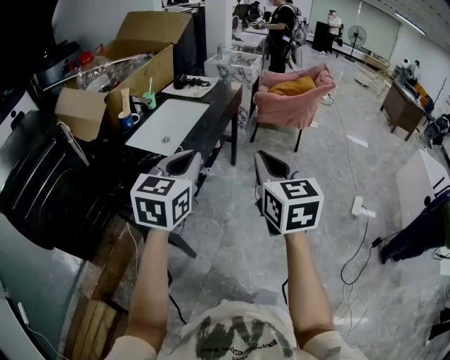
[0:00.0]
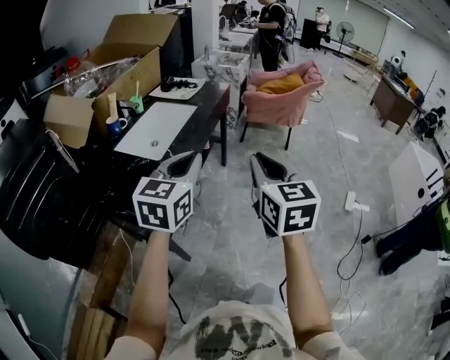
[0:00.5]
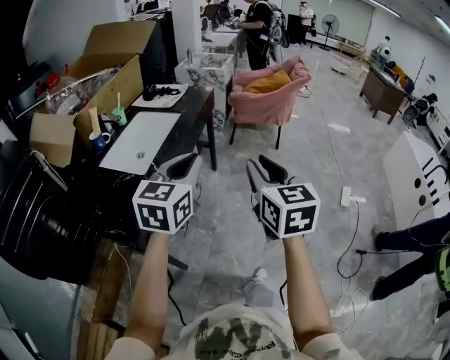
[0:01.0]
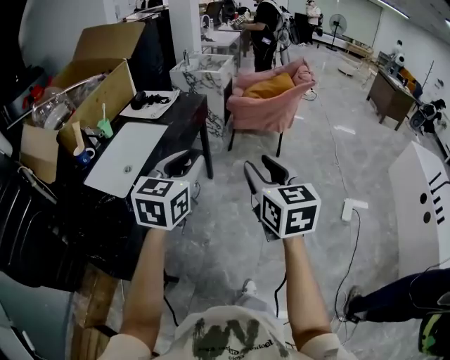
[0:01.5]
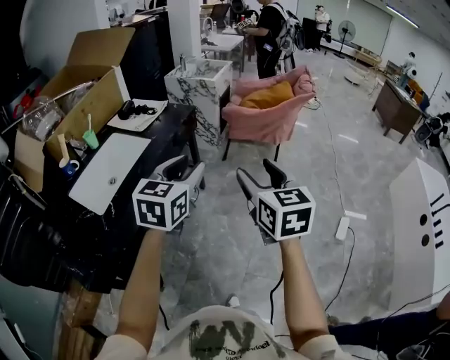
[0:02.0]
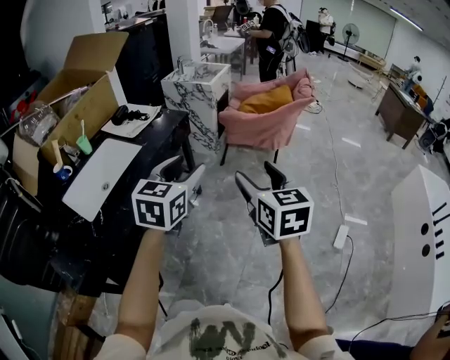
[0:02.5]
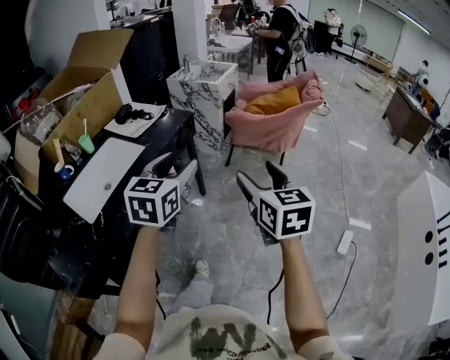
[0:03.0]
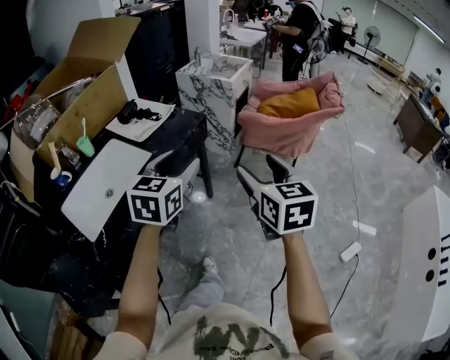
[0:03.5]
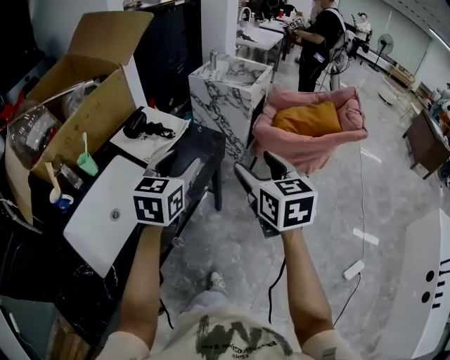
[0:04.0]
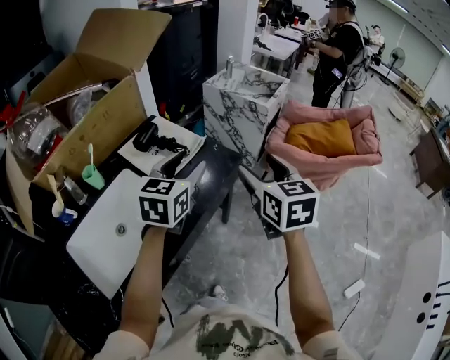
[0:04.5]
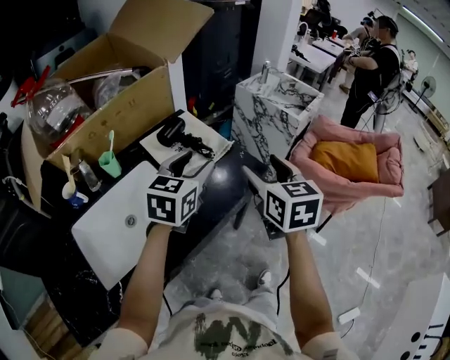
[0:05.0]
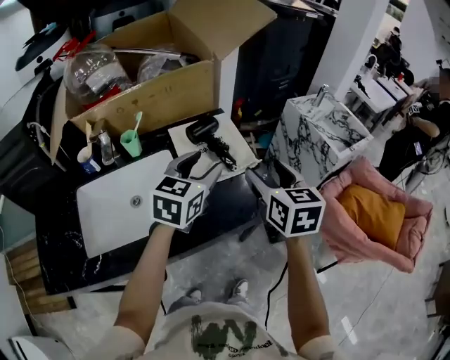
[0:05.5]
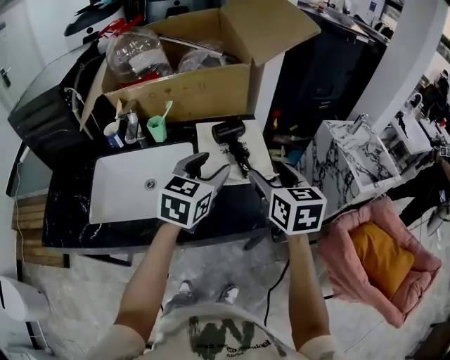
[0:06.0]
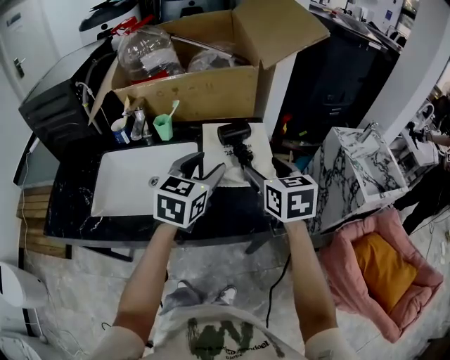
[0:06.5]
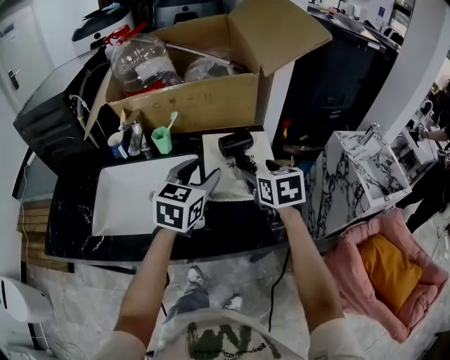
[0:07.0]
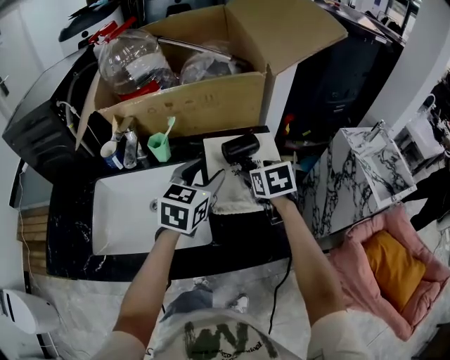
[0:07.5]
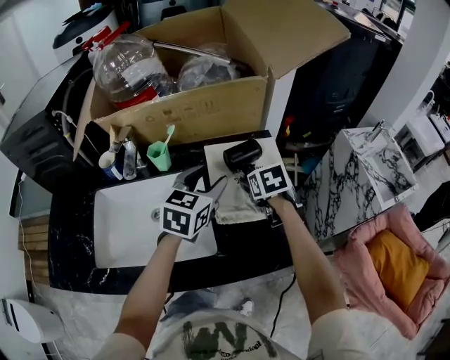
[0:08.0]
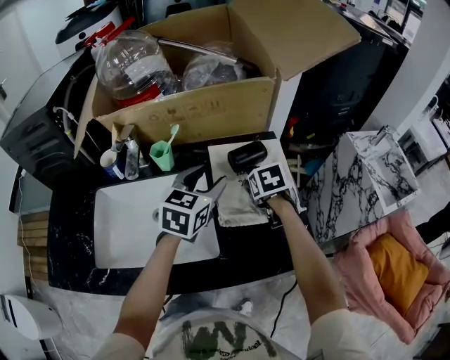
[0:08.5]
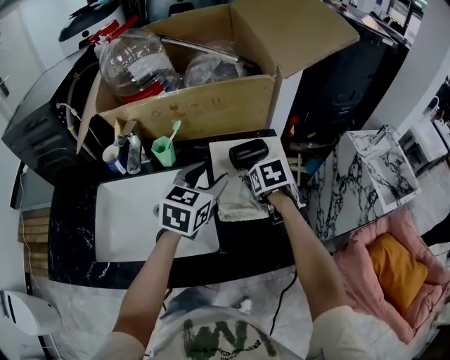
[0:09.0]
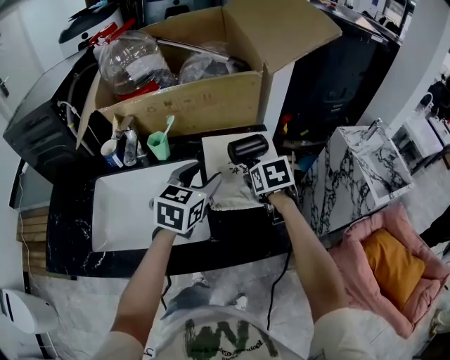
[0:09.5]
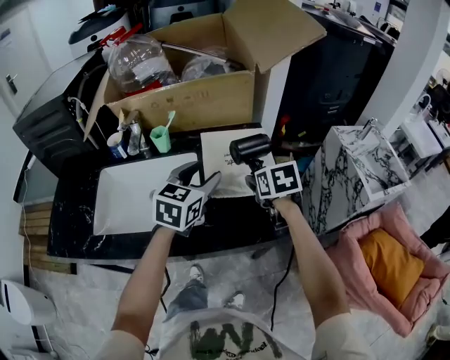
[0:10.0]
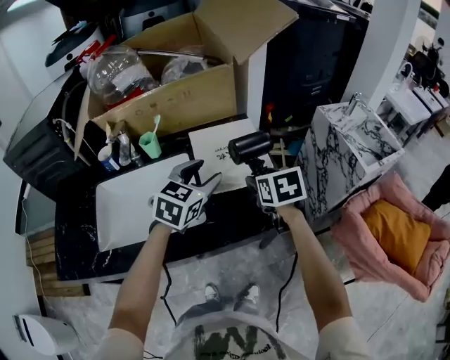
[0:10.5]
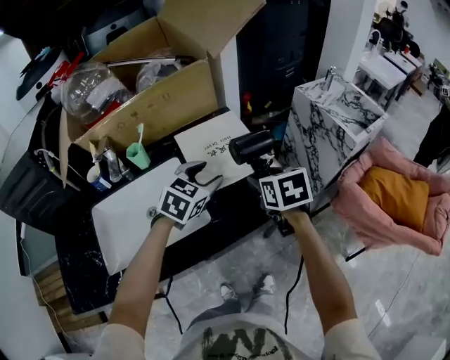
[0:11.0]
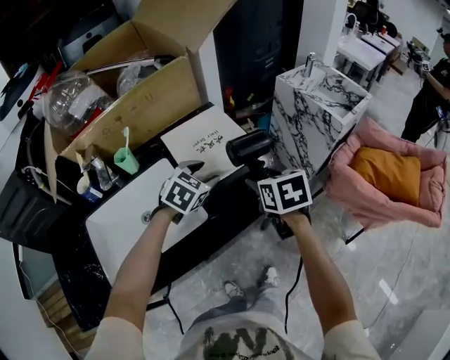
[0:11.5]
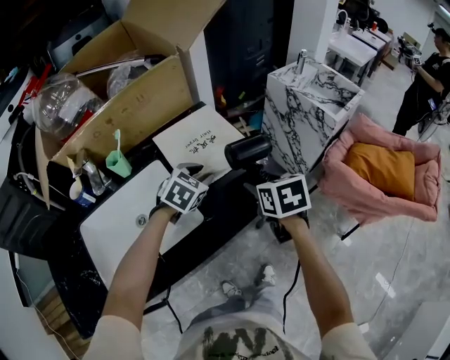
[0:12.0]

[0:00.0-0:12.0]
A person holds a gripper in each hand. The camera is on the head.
0:00.0 to 0:02.0: The two grippers go about 35 cm forward and to the right. The left gripper opens up. The right gripper opens its fingers.
0:02.0 to 0:04.0: Both grippers move forward, approximately 30 cm.
0:04.0 to 0:06.0: The right gripper changes place by some 30 cm, and changes its angle by some 50 degrees. Meanwhile the left gripper ends up roughly 20 cm from where it was, and changes its angle by some 40 degrees.
0:06.0 to 0:08.0: The right gripper is displaced forward and downward by about 25 cm, and angles its fingers downward, by some 30 degrees. Meanwhile the left gripper goes about 15 cm forward, downward and to the left.
0:08.0 to 0:10.0: The left gripper goes about 10 cm backward. The right gripper is displaced backward and upward by about 10 cm.
0:10.0 to 0:12.0: The left gripper goes about 15 cm downward, swivels approximately 50 degrees, and closes, while the right gripper moves about 15 cm, and rotates some 30 degrees.

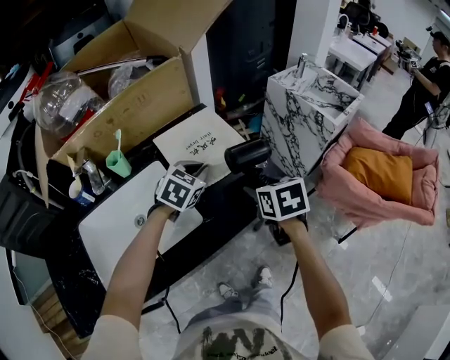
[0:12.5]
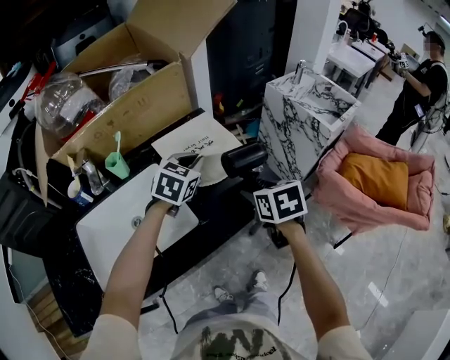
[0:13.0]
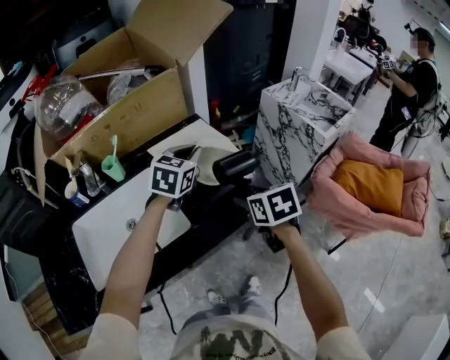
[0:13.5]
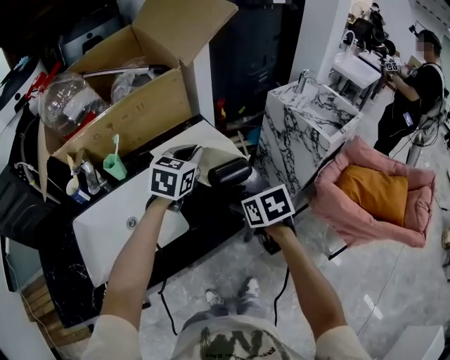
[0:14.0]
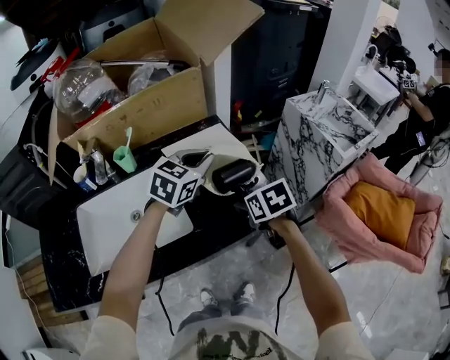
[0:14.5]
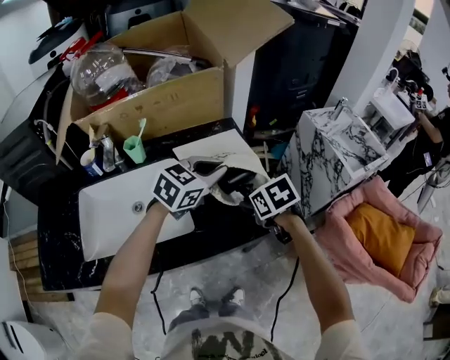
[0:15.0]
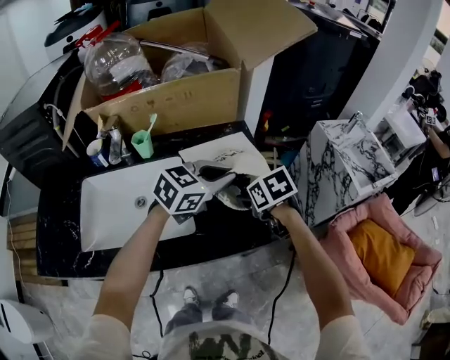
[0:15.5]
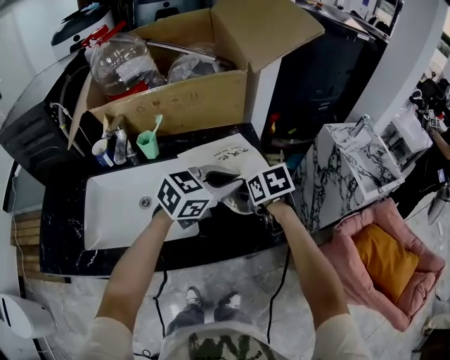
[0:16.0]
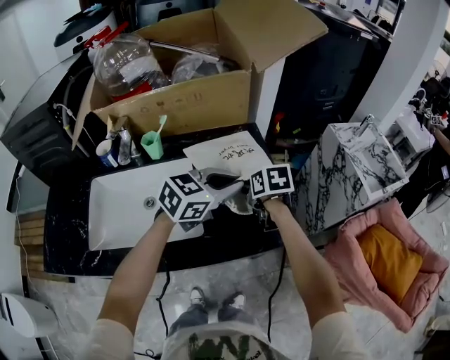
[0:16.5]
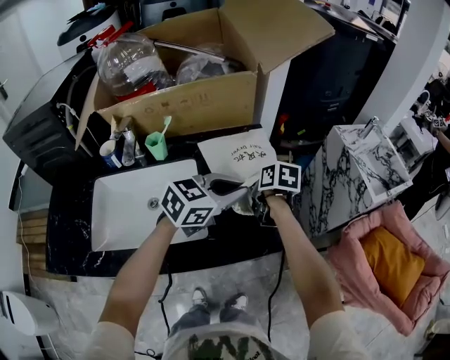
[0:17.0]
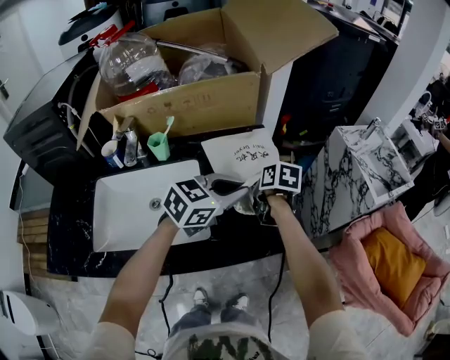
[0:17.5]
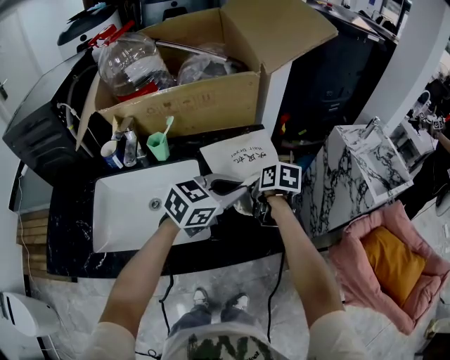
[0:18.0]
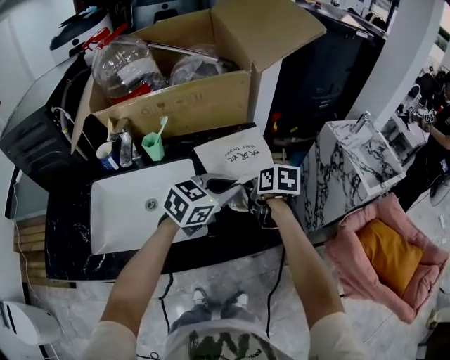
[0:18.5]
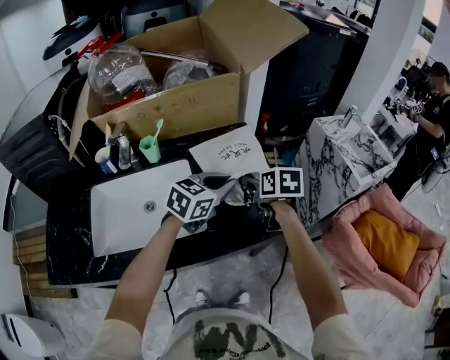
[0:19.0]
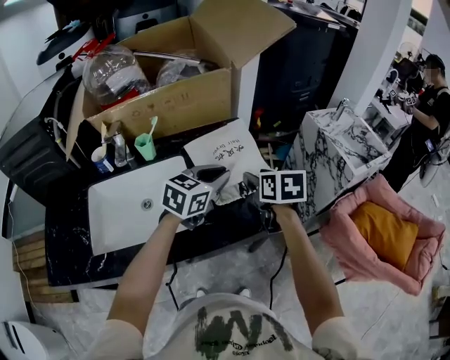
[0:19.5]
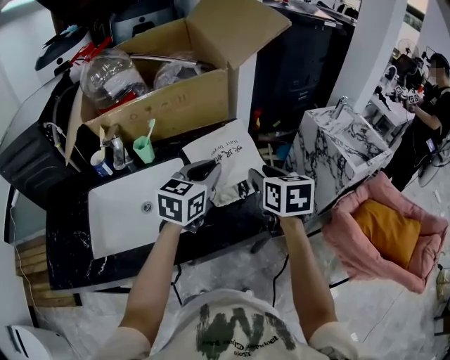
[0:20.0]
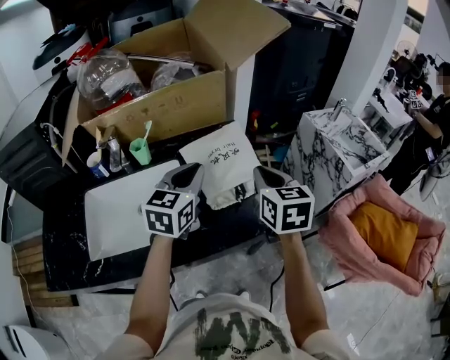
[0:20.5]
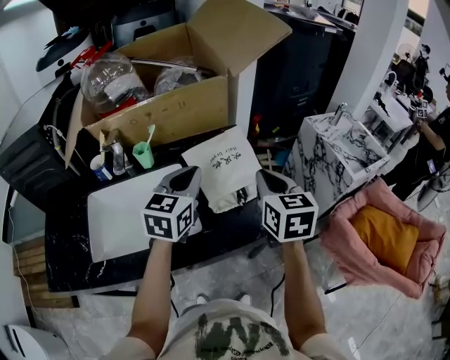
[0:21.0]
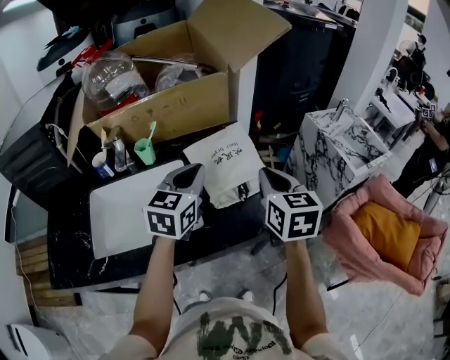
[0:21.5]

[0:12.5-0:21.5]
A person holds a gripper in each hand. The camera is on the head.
0:12.5 to 0:14.5: The left gripper moves upward, roughly 10 cm. Meanwhile the right gripper changes its angle by roughly 20 degrees.
0:14.5 to 0:17.0: The left gripper shifts by roughly 5 cm. Meanwhile the right gripper moves forward, about 15 cm.
0:17.0 to 0:19.5: The right gripper moves upward and backward, approximately 10 cm.
0:19.5 to 0:21.5: The right gripper goes approximately 10 cm upward, changes its angle by some 20 degrees, and closes its fingers. Meanwhile the left gripper heads upward and to the left, covering approximately 10 cm, and rotates about 20 degrees.

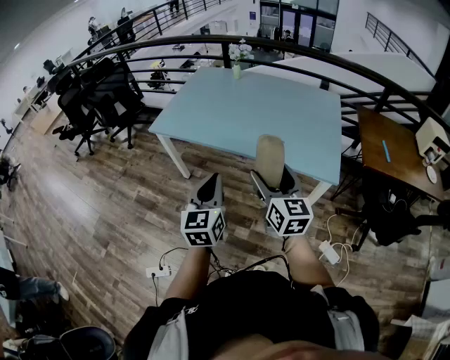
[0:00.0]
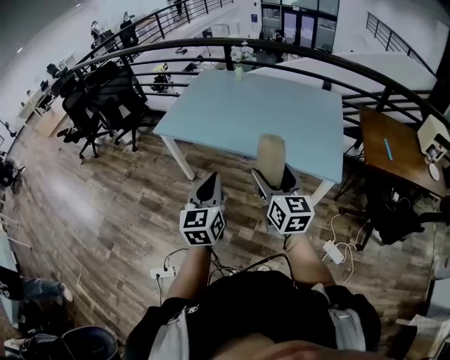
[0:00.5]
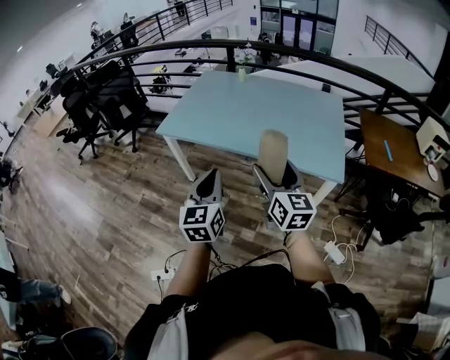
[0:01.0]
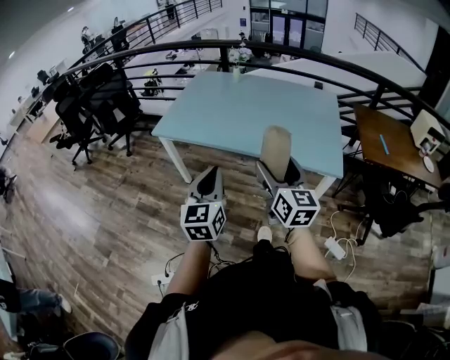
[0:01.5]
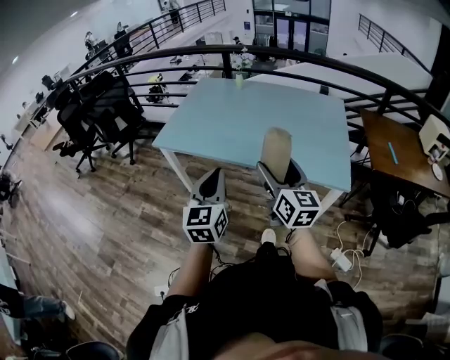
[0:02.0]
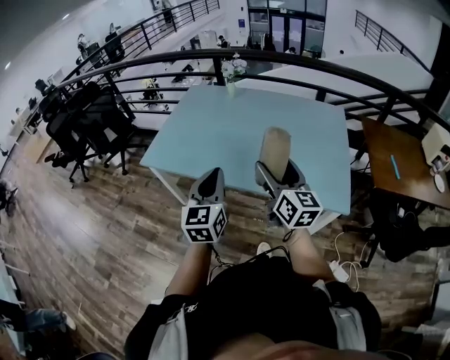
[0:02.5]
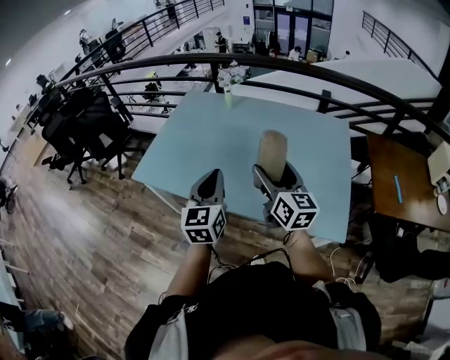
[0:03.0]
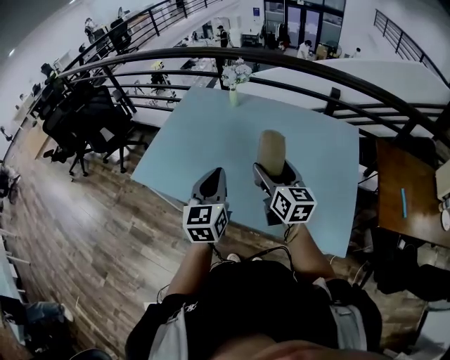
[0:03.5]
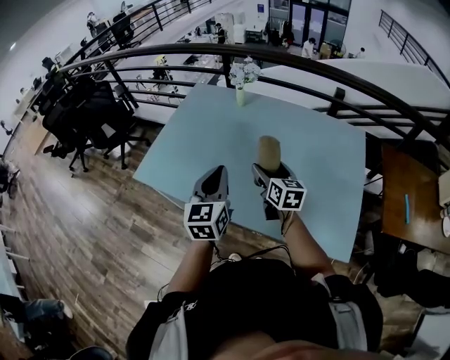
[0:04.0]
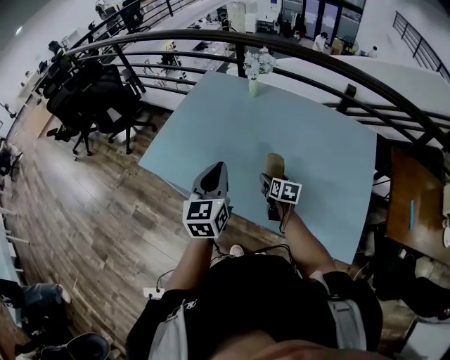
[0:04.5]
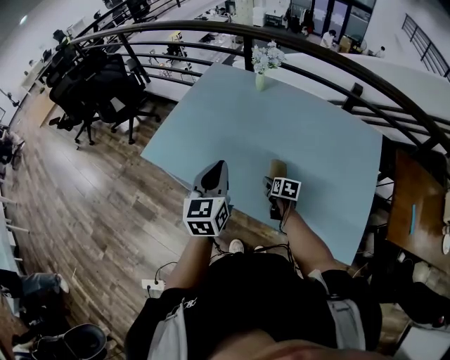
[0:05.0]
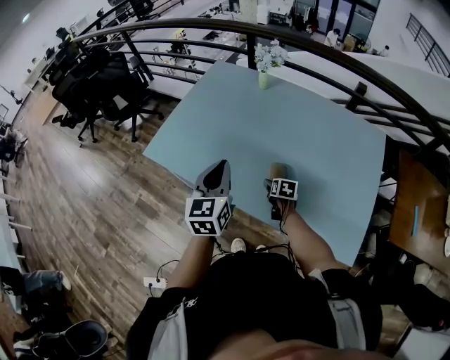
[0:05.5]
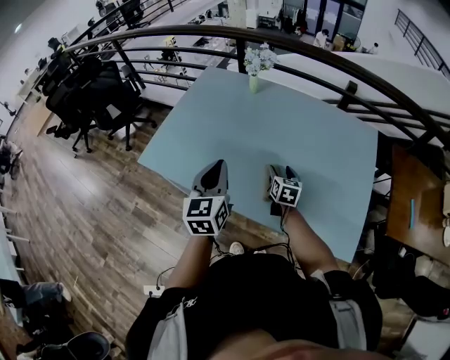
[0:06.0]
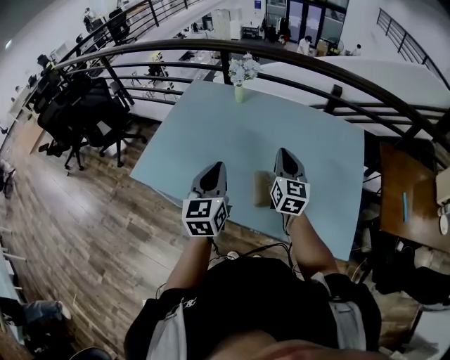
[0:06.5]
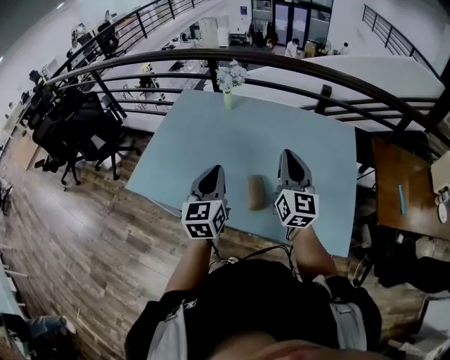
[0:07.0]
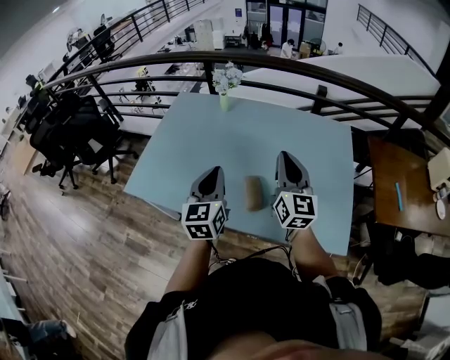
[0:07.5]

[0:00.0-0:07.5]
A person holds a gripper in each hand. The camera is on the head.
0:00.0 to 0:02.0: Both grippers travel together forward, approximately 5 cm.
0:02.0 to 0:04.0: Both grippers move forward, approximately 40 cm. The right gripper swivels approximately 20 degrees.
0:04.0 to 0:05.5: The left gripper changes place by some 5 cm, while the right gripper moves downward, roughly 25 cm, and tilts its fingers about 30 degrees downward.
0:05.5 to 0:07.5: The left gripper is displaced to the right by about 5 cm, while the right gripper goes approximately 40 cm upward, angles its fingers upward, by roughly 60 degrees, and closes up.
